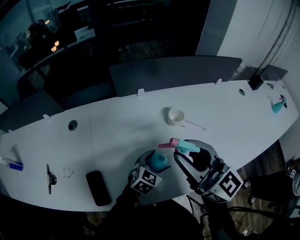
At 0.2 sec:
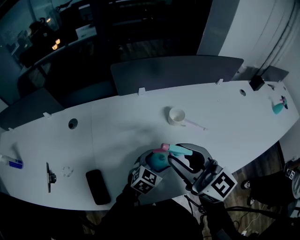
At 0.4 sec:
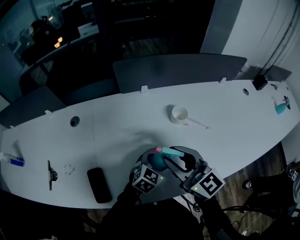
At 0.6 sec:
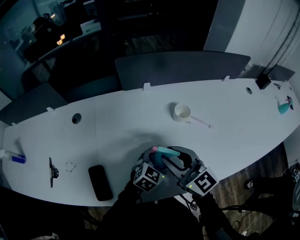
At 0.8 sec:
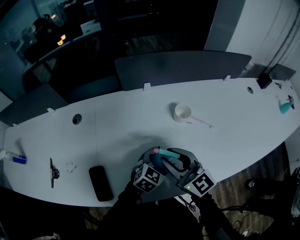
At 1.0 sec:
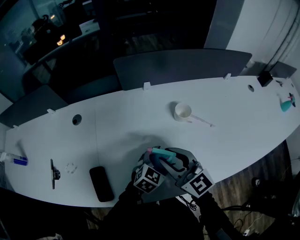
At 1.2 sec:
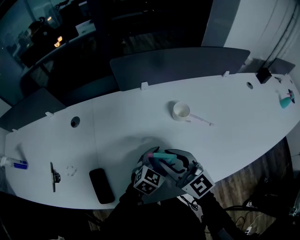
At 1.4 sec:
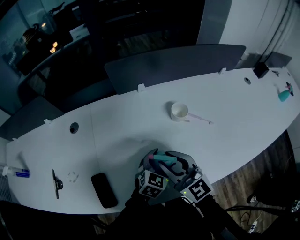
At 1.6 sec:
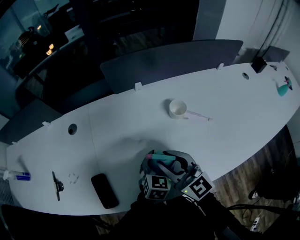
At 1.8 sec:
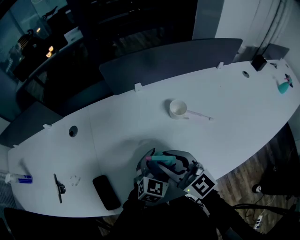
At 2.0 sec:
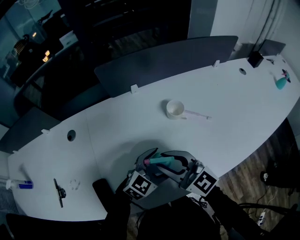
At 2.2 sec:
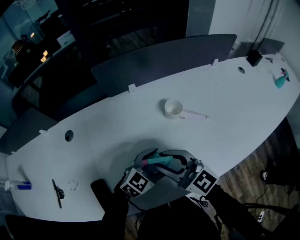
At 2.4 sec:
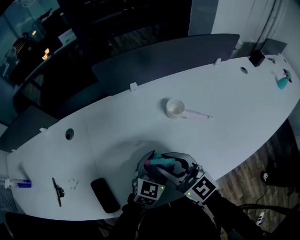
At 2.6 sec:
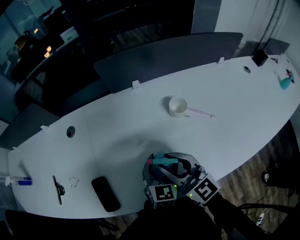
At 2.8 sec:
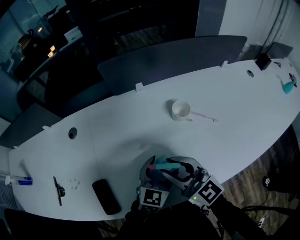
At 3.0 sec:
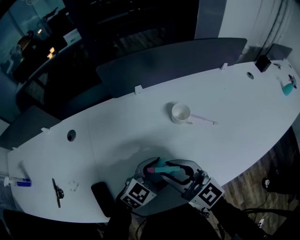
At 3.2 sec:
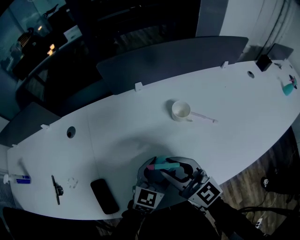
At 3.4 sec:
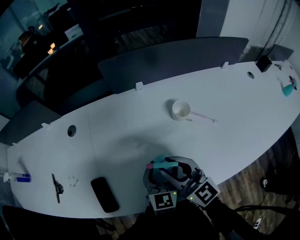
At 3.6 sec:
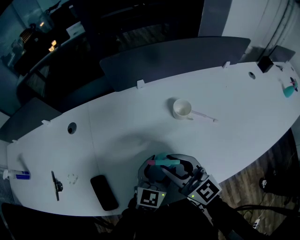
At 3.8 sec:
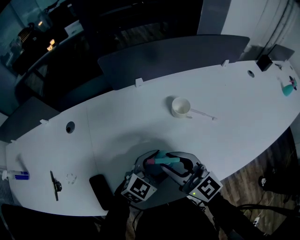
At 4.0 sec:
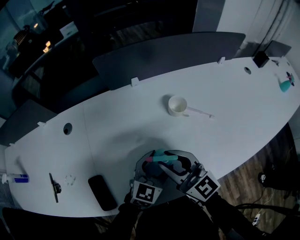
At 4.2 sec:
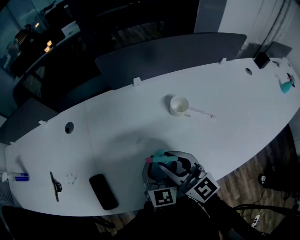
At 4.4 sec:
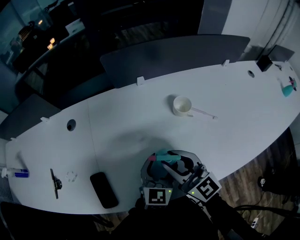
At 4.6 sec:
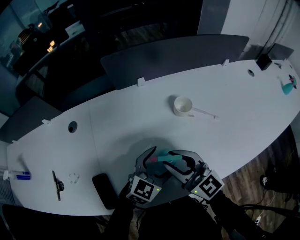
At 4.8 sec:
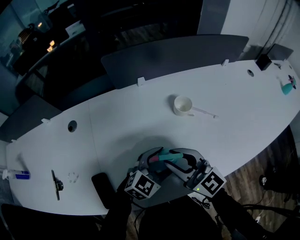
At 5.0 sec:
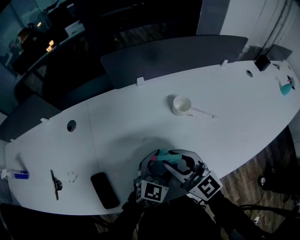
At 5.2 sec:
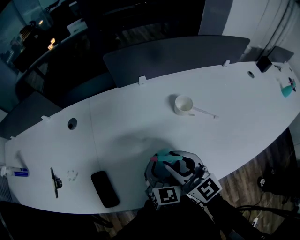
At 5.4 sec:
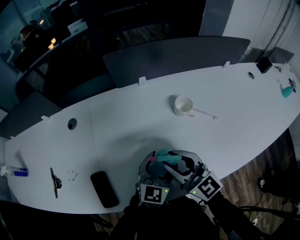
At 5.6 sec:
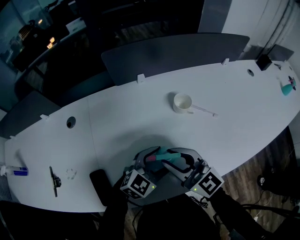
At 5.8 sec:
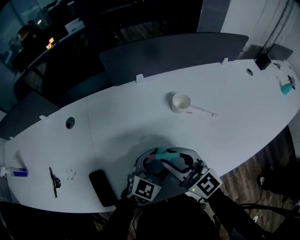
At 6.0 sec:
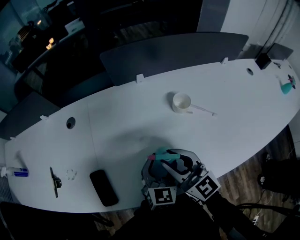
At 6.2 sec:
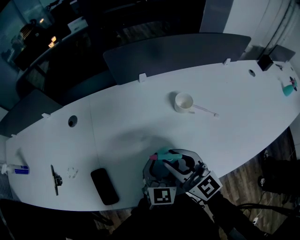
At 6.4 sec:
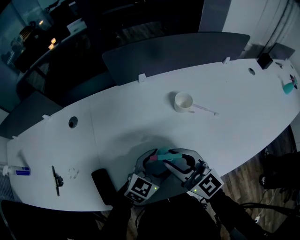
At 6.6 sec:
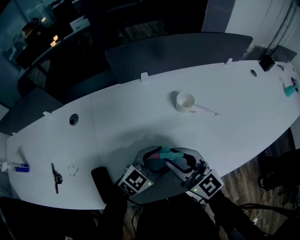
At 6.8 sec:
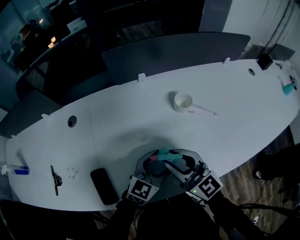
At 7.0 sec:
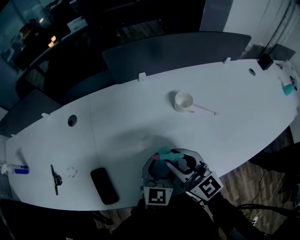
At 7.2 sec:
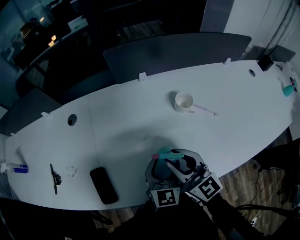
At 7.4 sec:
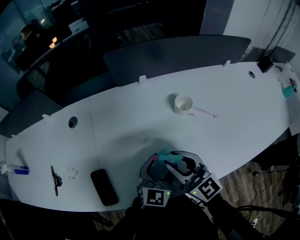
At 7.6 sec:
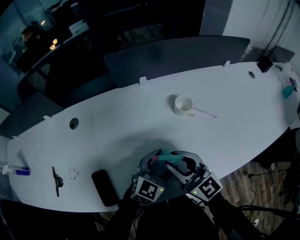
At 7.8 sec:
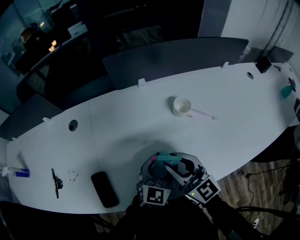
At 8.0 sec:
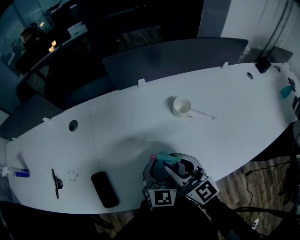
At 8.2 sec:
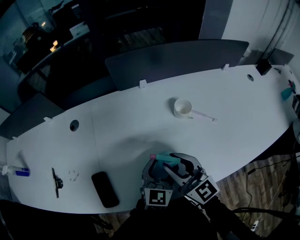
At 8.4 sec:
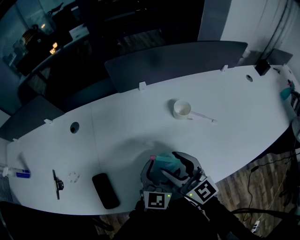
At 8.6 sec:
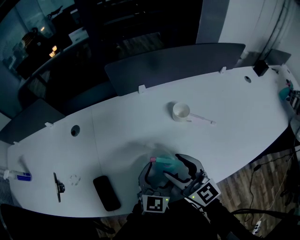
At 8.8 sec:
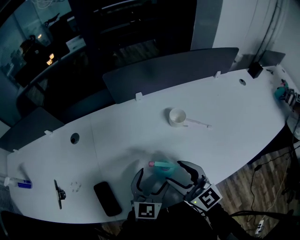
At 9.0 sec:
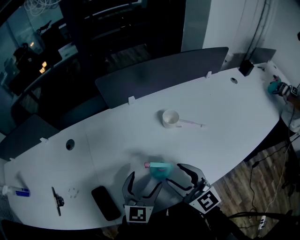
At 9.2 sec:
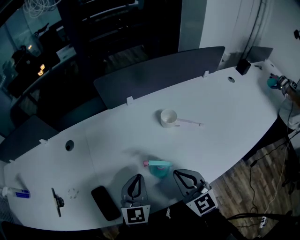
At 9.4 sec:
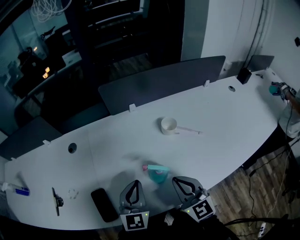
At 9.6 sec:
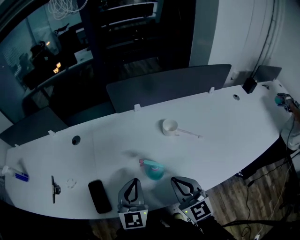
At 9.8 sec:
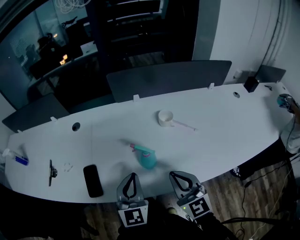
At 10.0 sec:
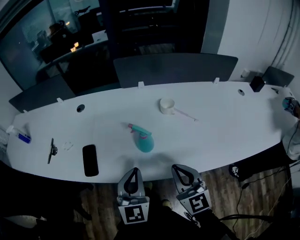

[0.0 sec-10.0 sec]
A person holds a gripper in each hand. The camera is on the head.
0.0 sec to 1.4 sec: The right gripper travels downward by about 15 cm.
4.2 sec to 5.8 sec: The left gripper turns by roughly 30 degrees.
5.8 sec to 7.2 sec: The left gripper changes its angle by about 30 degrees.
7.2 sec to 8.6 sec: The right gripper opens its fingers.
8.6 sec to 10.0 sec: The right gripper heads backward and to the right, covering approximately 15 cm, and closes up. Meanwhile the left gripper is displaced backward and upward by roughly 15 cm, turns by about 30 degrees, and closes up.

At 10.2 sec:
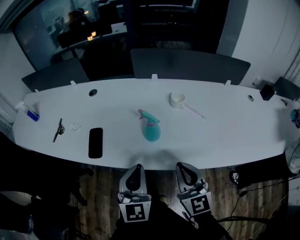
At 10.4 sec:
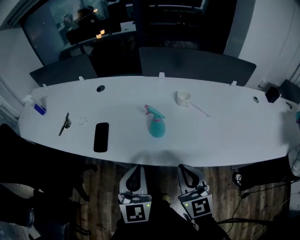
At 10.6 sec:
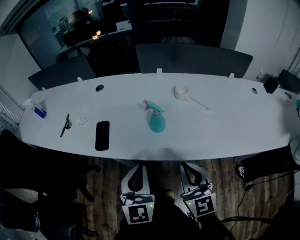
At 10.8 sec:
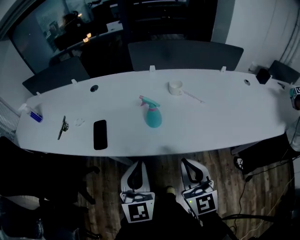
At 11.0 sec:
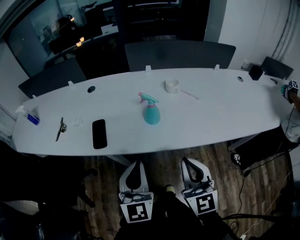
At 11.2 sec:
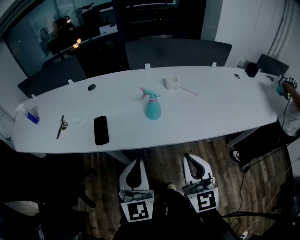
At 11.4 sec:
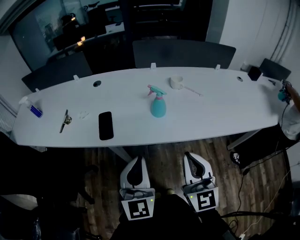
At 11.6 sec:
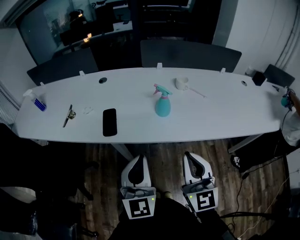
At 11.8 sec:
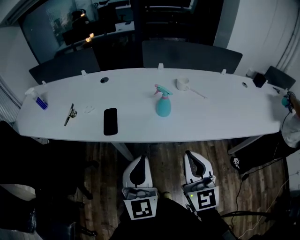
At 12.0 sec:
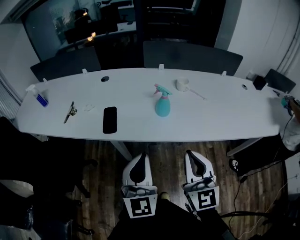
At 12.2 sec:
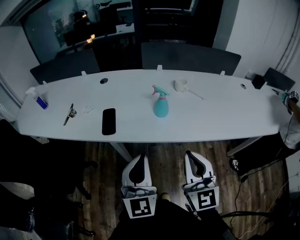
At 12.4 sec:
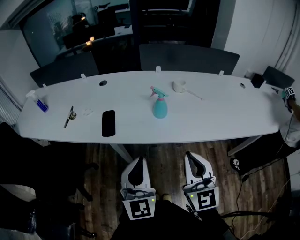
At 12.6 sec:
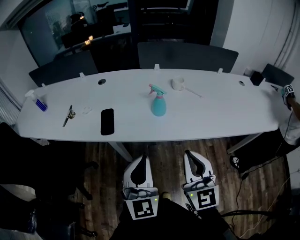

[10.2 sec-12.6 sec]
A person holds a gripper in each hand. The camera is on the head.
10.2 sec to 11.4 sec: The right gripper goes roughly 15 cm backward, to the left and upward, while the left gripper travels backward and to the left by some 15 cm.
11.4 sec to 12.6 sec: The grippers make only small movements.

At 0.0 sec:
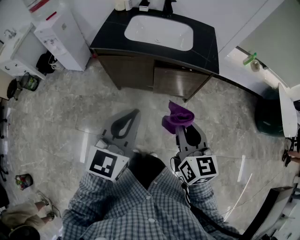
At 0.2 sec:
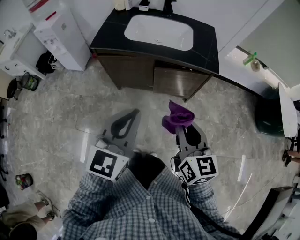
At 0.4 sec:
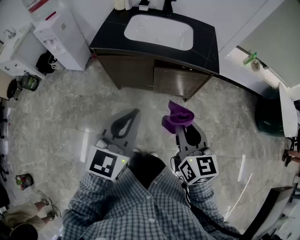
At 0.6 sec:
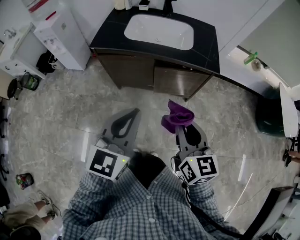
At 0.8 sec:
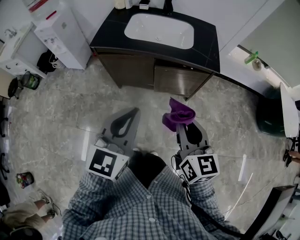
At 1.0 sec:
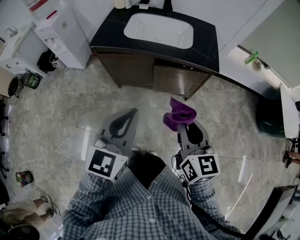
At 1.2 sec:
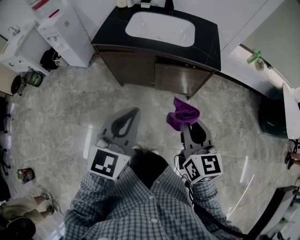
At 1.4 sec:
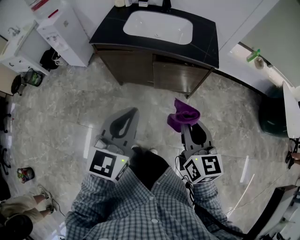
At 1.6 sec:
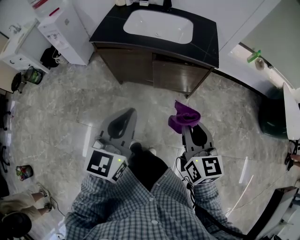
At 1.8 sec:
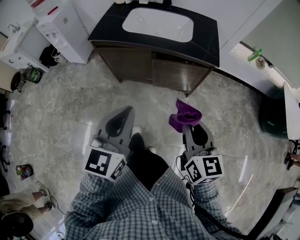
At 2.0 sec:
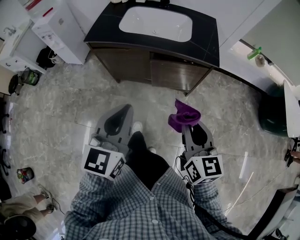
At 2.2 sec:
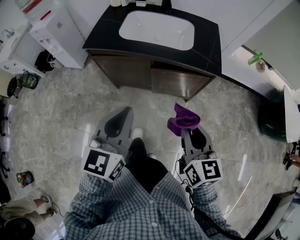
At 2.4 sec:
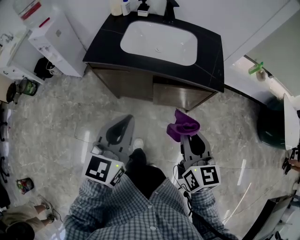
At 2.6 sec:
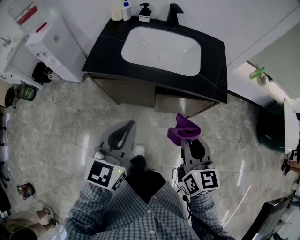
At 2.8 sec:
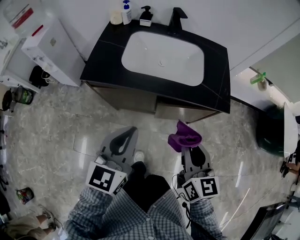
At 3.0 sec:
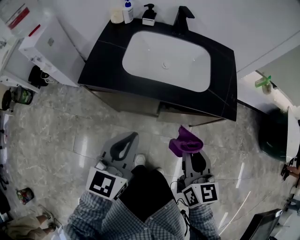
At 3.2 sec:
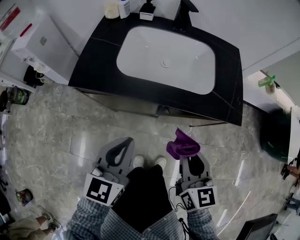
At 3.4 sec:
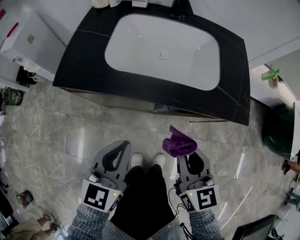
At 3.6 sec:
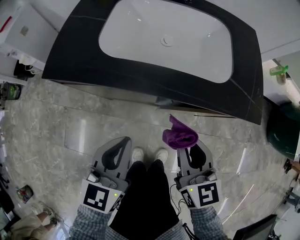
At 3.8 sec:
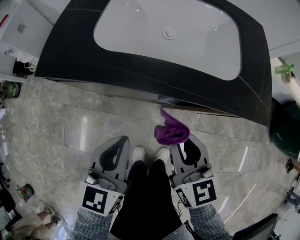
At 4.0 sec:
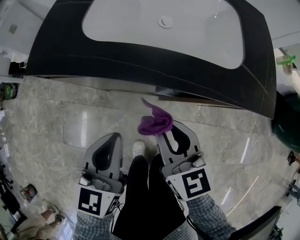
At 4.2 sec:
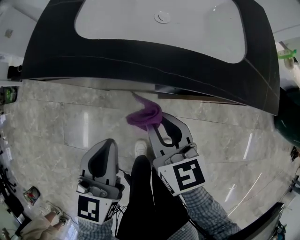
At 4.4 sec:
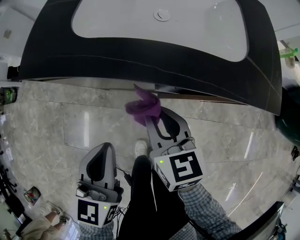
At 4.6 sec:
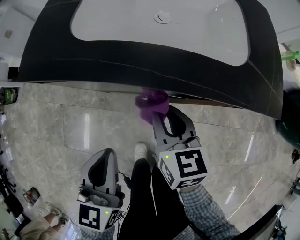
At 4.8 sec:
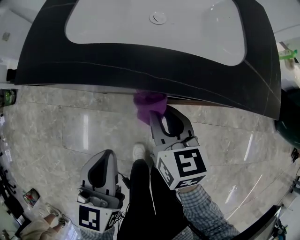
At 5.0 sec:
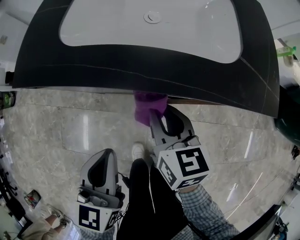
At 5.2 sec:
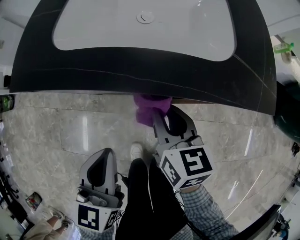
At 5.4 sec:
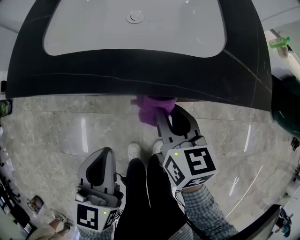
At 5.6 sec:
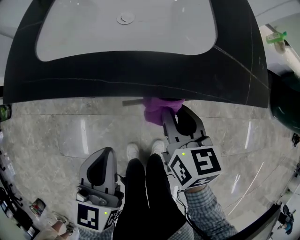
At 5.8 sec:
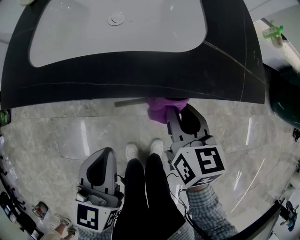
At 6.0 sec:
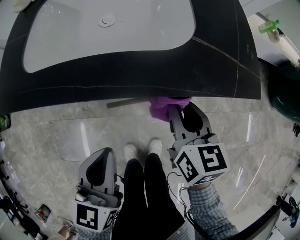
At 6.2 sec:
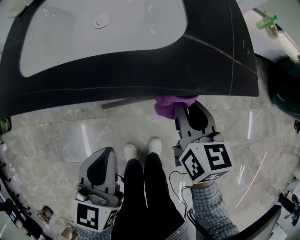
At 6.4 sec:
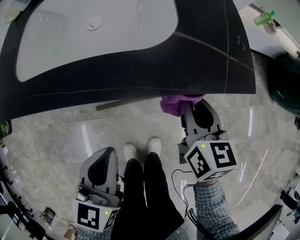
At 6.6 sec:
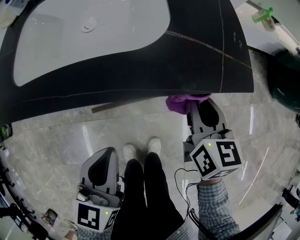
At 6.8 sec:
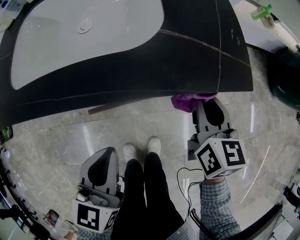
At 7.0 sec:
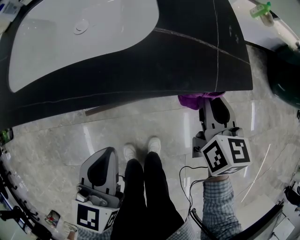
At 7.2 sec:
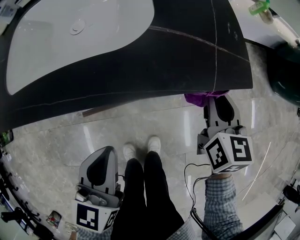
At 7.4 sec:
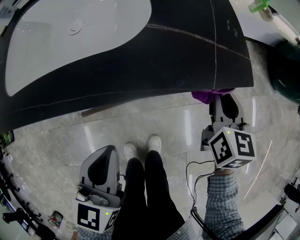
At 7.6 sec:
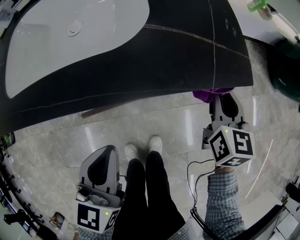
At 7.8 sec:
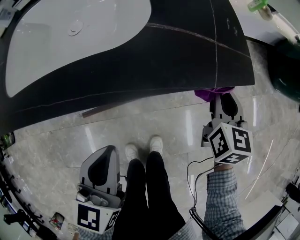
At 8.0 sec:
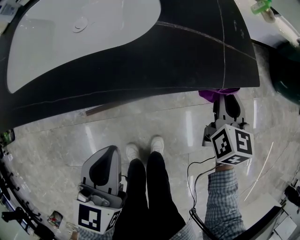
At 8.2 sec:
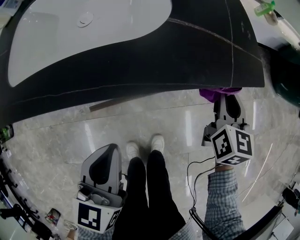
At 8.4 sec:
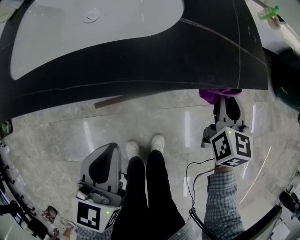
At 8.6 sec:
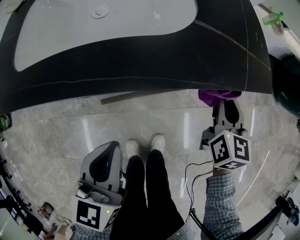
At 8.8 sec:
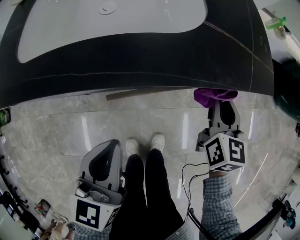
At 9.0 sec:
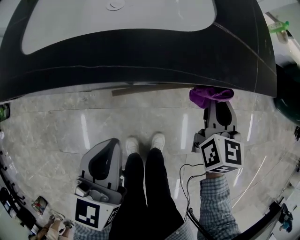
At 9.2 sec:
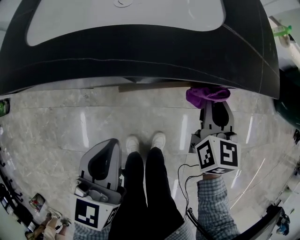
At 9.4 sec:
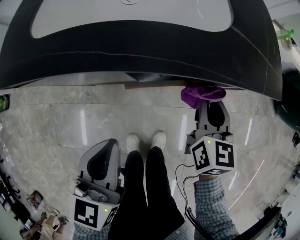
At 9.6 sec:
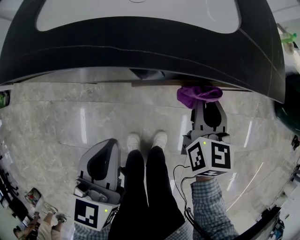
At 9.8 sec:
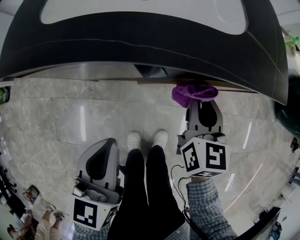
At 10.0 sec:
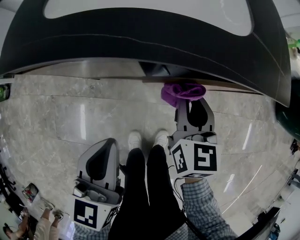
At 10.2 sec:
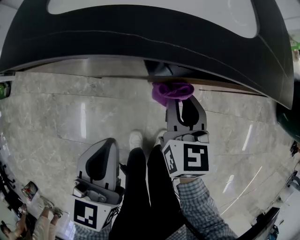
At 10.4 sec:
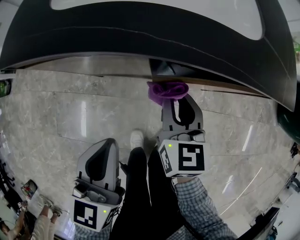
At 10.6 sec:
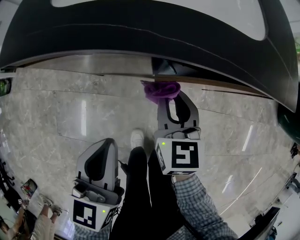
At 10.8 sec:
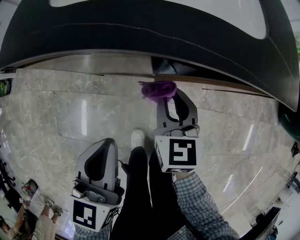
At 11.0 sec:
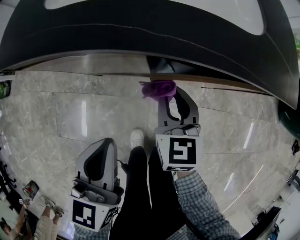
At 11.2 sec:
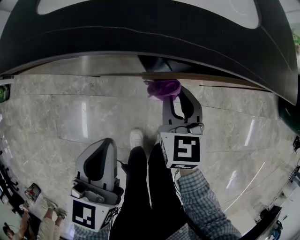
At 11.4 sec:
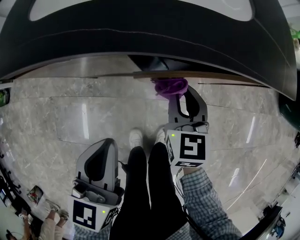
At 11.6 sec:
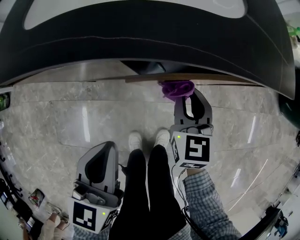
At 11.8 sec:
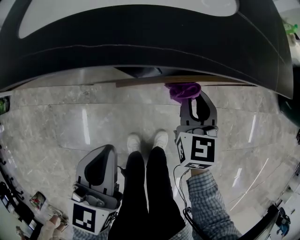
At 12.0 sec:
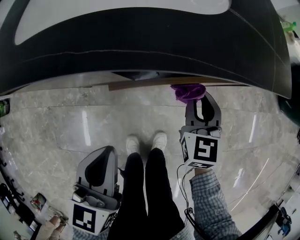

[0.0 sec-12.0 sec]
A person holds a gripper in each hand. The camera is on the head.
0.0 sec to 1.6 sec: The right gripper goes some 5 cm to the right.
1.6 sec to 3.0 sec: Both grippers travel together forward, approximately 25 cm.
3.0 sec to 4.4 sec: The left gripper moves downward, approximately 20 cm, while the right gripper is displaced downward, forward and to the left by about 25 cm.
4.4 sec to 6.0 sec: The left gripper heads to the right, covering approximately 15 cm, while the right gripper moves to the right, some 20 cm, and rotates roughly 20 degrees.
6.0 sec to 7.6 sec: The left gripper moves to the right, approximately 5 cm. Meanwhile the right gripper shifts approximately 20 cm to the right, and changes its angle by some 20 degrees.
7.6 sec to 9.0 sec: The left gripper is displaced to the left by some 5 cm; the right gripper moves to the left, approximately 10 cm.
9.0 sec to 10.4 sec: The right gripper shifts some 20 cm to the left. Meanwhile the left gripper heads to the left, covering approximately 10 cm.
10.4 sec to 12.0 sec: The right gripper heads to the right, covering some 15 cm. The left gripper shifts some 5 cm to the right.
